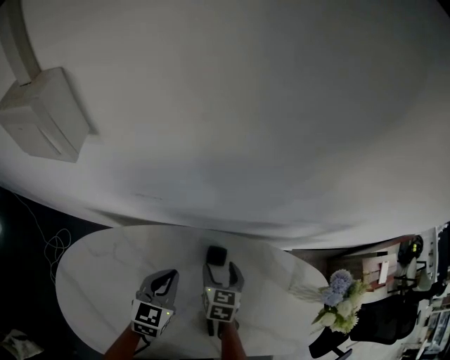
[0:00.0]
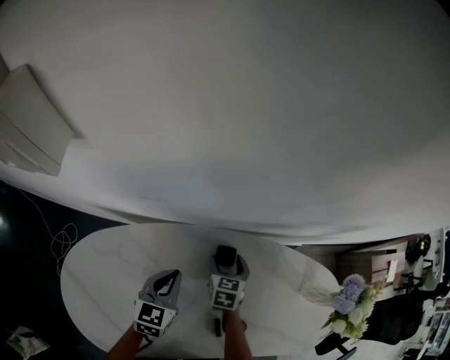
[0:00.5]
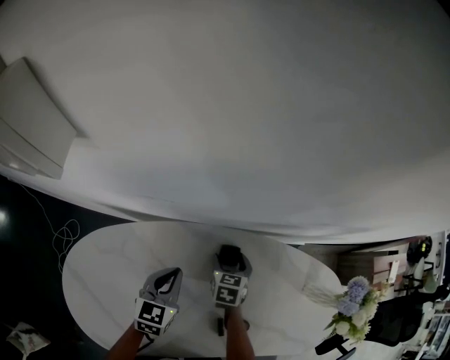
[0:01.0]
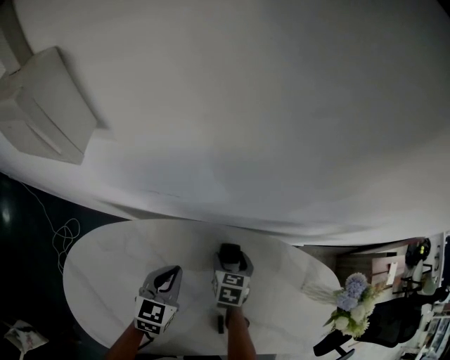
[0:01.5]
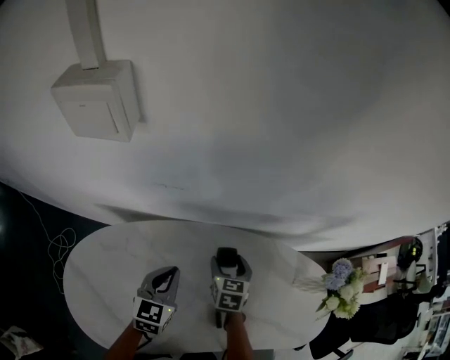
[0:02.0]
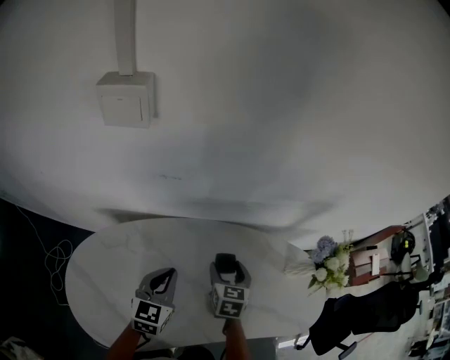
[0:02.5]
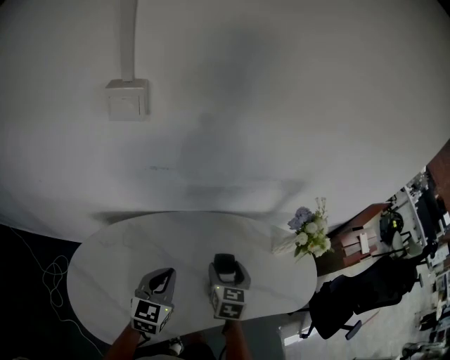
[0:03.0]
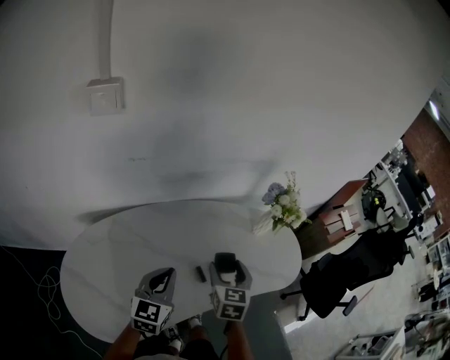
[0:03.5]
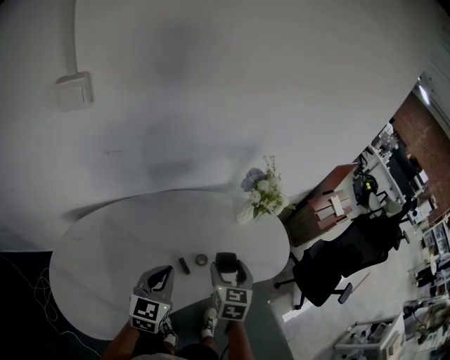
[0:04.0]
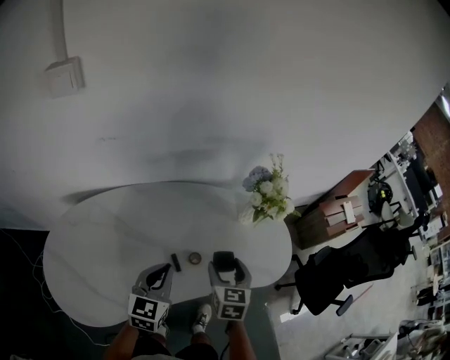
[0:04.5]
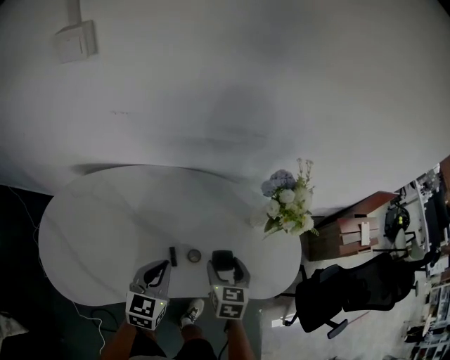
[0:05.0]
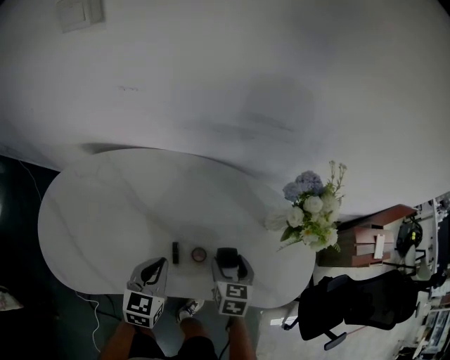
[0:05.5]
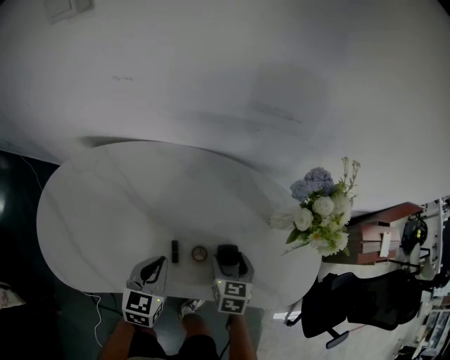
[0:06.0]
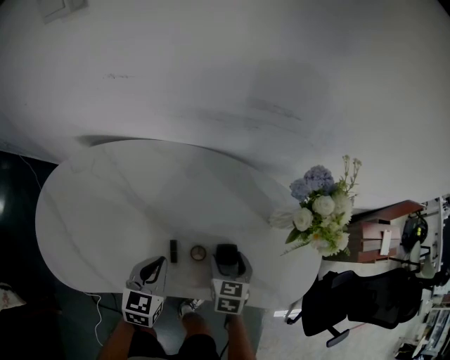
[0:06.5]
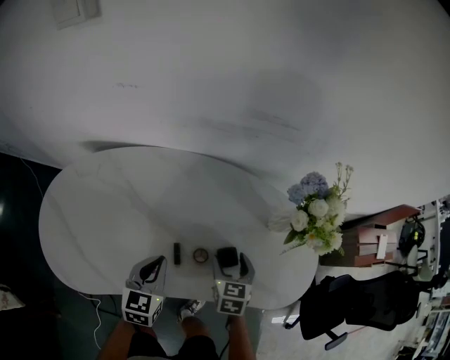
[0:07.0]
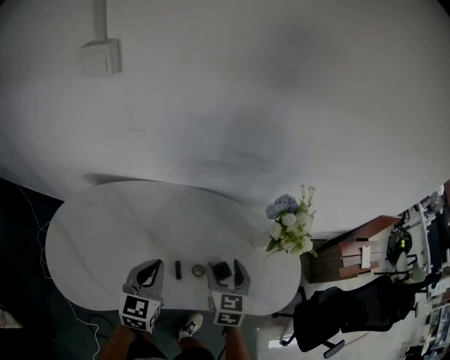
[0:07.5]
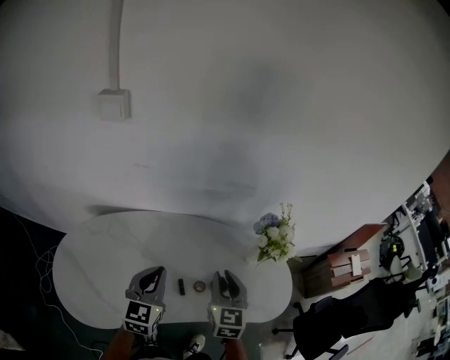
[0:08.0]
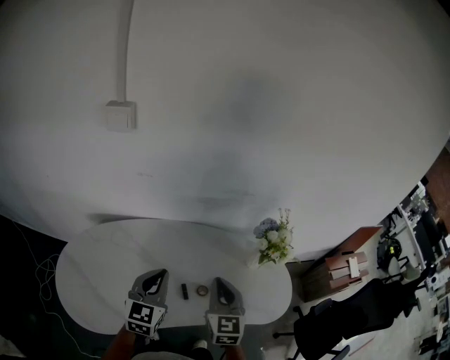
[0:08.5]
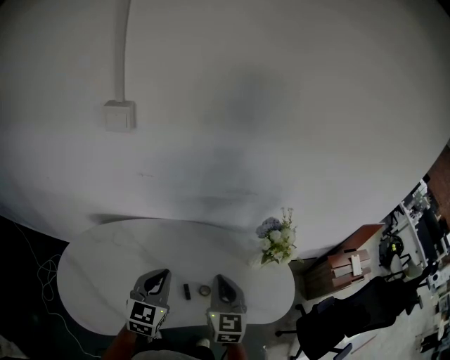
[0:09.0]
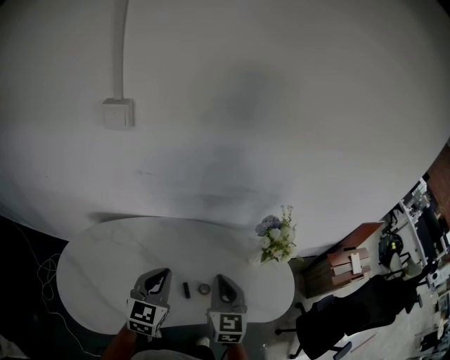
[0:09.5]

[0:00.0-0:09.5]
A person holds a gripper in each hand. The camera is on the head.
0:00.0 to 0:02.0: The left gripper moves some 5 cm, while the right gripper reaches approximately 5 cm downward, then returns.
0:02.0 to 0:04.0: The left gripper heads to the right, backward and upward, covering approximately 25 cm, and changes its angle by roughly 20 degrees; the right gripper travels backward, to the right and upward by approximately 35 cm, and swivels roughly 30 degrees.
0:04.0 to 0:05.5: The two grippers go roughly 15 cm downward. The left gripper rotates roughly 30 degrees; the right gripper swivels approximately 30 degrees.
0:05.5 to 0:07.5: The two grippers go about 10 cm upward.
0:07.5 to 0:09.5: Both grippers travel together upward, about 10 cm. The right gripper closes.

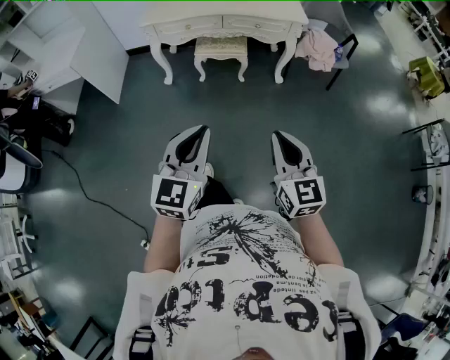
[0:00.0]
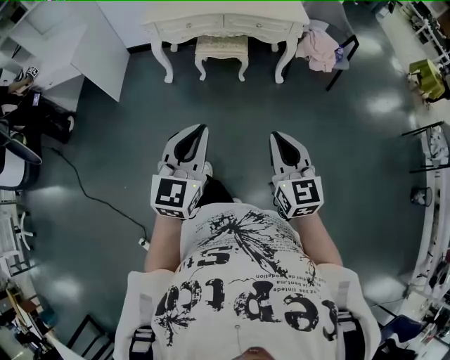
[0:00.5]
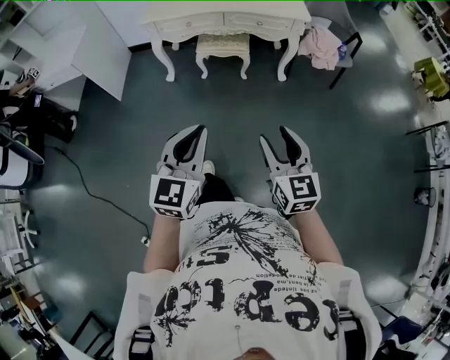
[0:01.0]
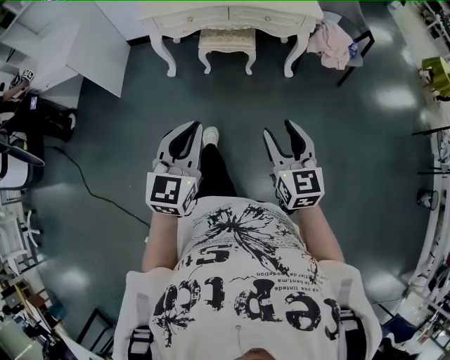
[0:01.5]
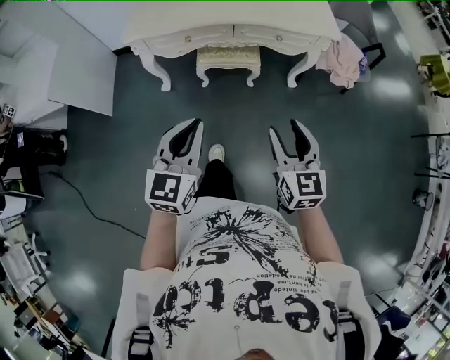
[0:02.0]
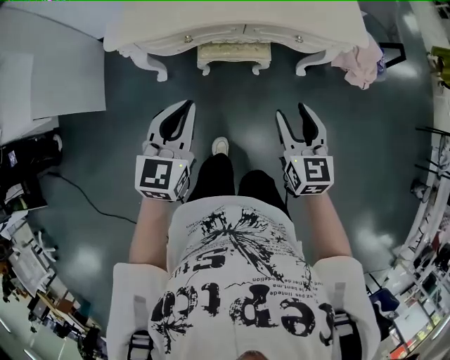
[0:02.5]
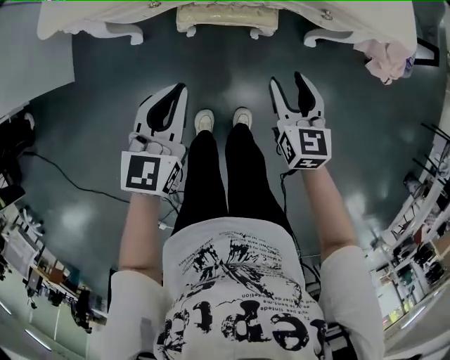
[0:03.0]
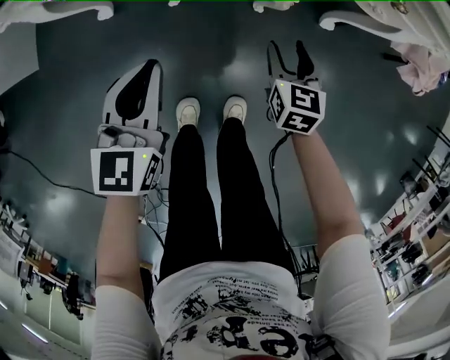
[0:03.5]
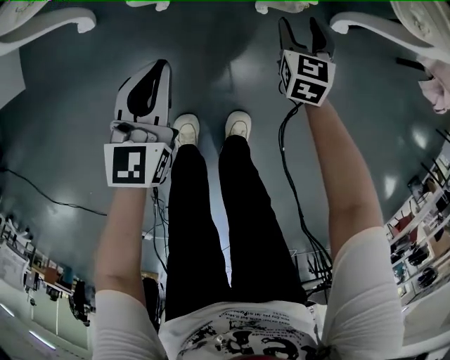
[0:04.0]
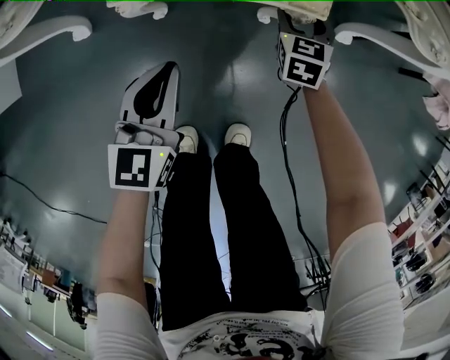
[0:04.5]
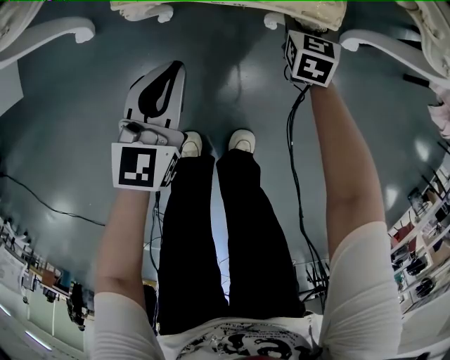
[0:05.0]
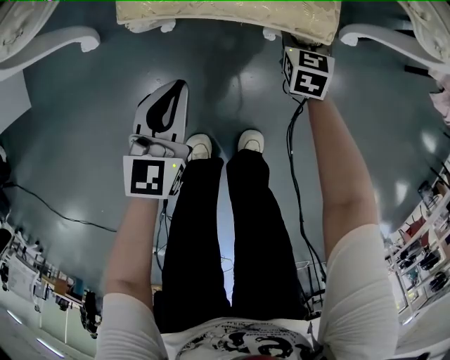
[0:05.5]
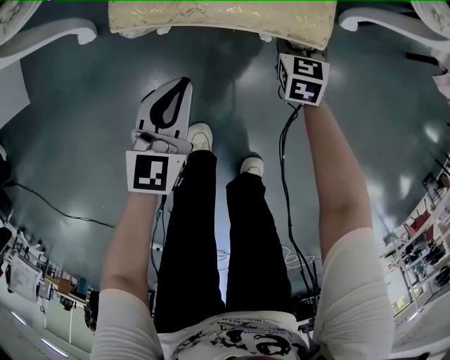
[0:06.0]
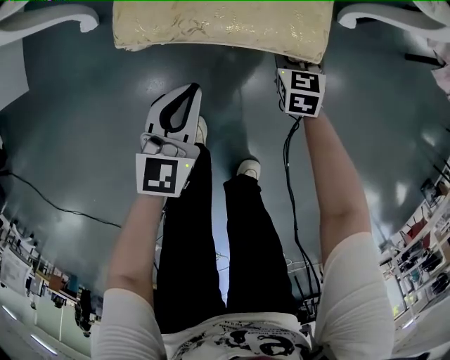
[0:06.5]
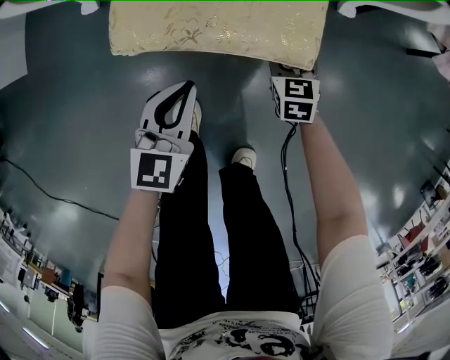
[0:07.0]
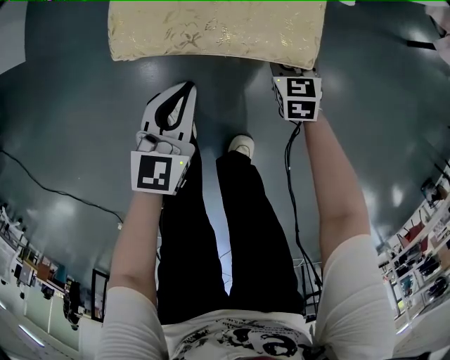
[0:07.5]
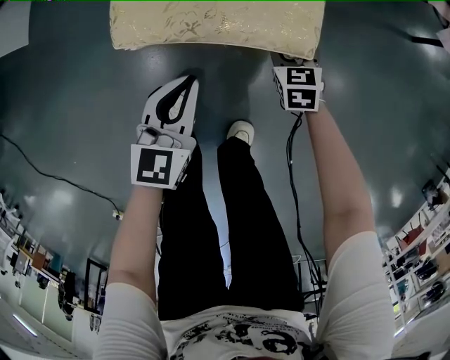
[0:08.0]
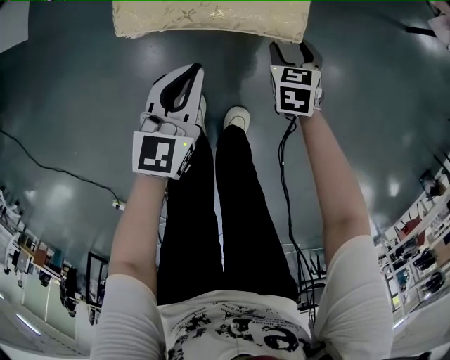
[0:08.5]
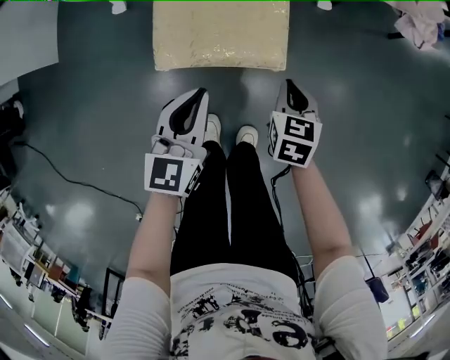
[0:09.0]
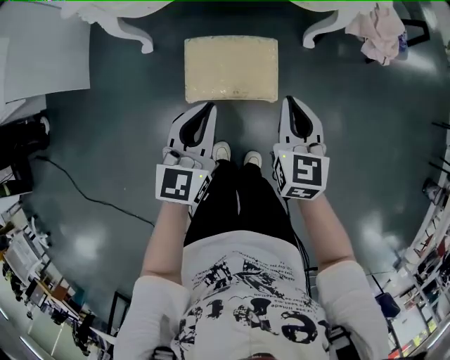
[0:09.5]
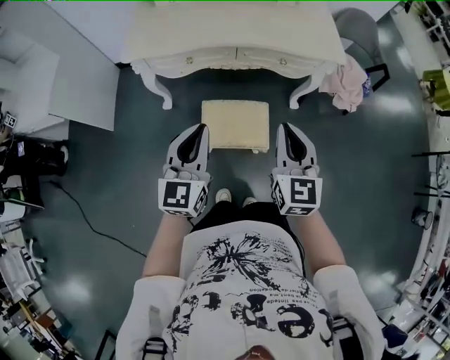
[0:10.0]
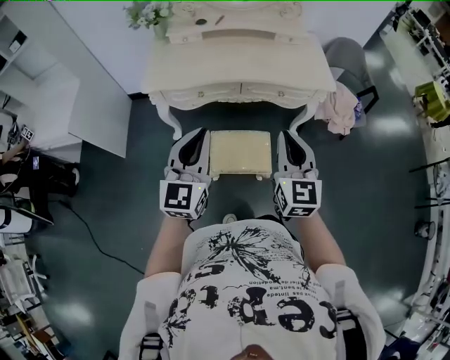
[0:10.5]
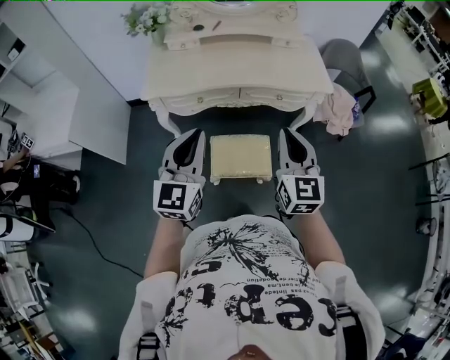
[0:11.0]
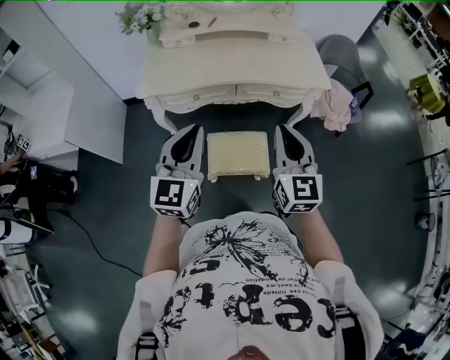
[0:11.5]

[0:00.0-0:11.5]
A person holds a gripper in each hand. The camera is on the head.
0:00.0 to 0:02.0: Both grippers move forward, about 30 cm. The right gripper opens.
0:02.0 to 0:04.0: The grippers both shift downward and forward by some 70 cm. The right gripper swivels roughly 20 degrees.
0:04.0 to 0:06.0: The left gripper moves some 5 cm, while the right gripper goes roughly 5 cm downward, and travels forward and back again, some 10 cm each way.
0:06.0 to 0:07.5: The left gripper is displaced backward and to the right by roughly 20 cm. The right gripper goes about 25 cm backward.
0:07.5 to 0:09.5: Both grippers move upward, some 40 cm. The right gripper swivels approximately 20 degrees, and closes its fingers.
0:09.5 to 0:11.5: The two grippers go some 30 cm upward. The right gripper turns by some 20 degrees.

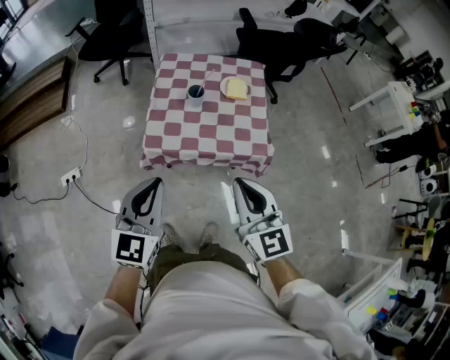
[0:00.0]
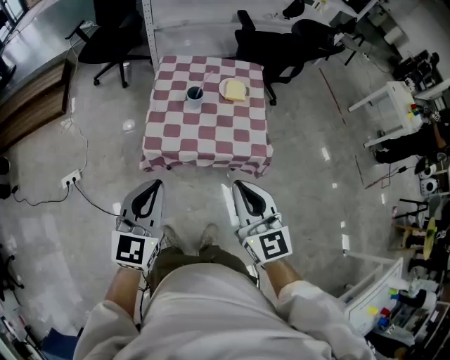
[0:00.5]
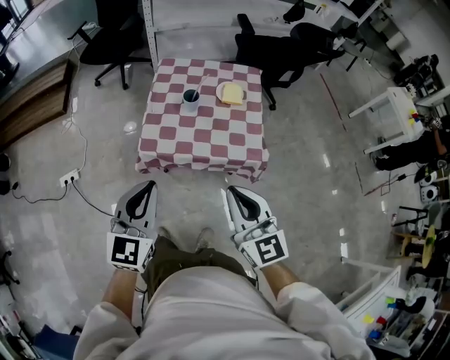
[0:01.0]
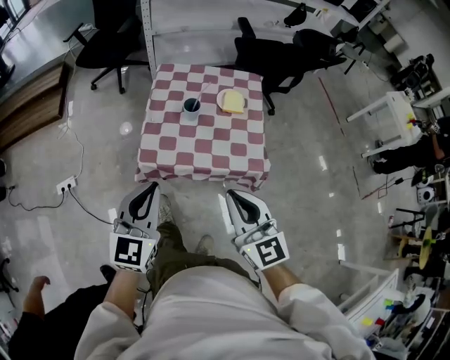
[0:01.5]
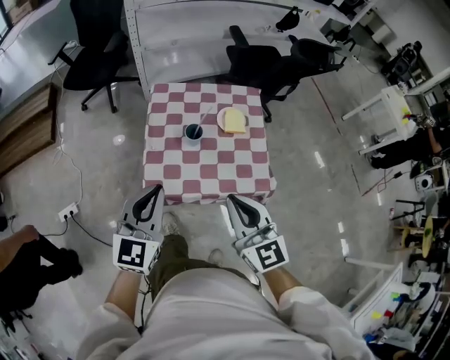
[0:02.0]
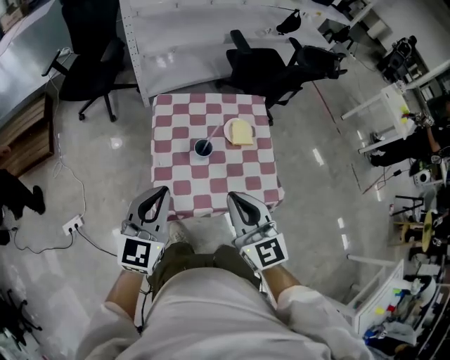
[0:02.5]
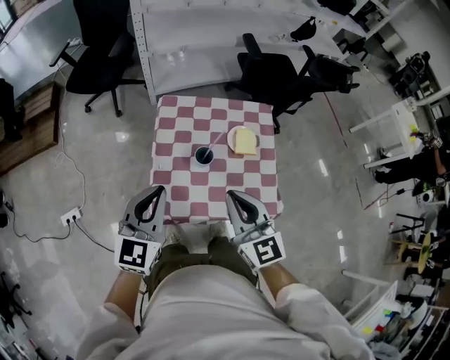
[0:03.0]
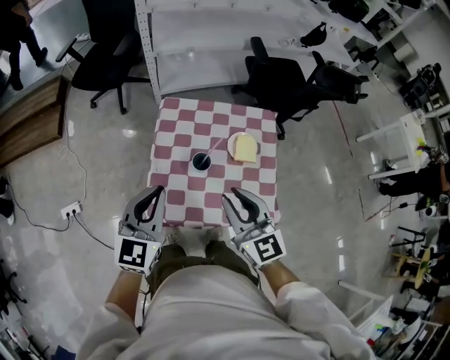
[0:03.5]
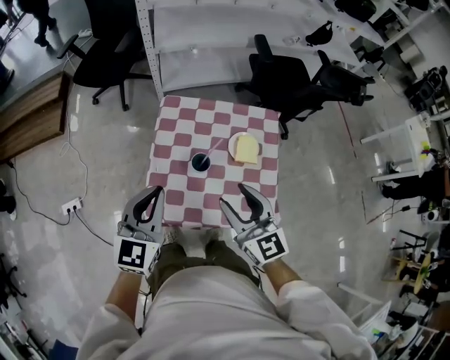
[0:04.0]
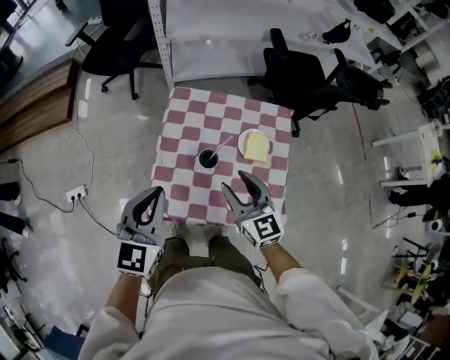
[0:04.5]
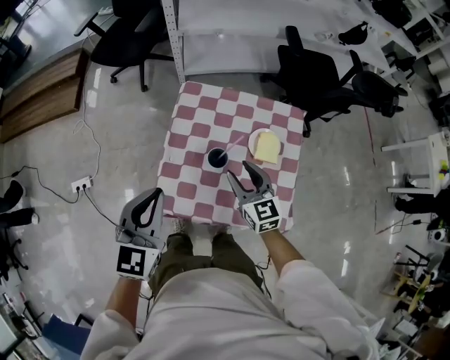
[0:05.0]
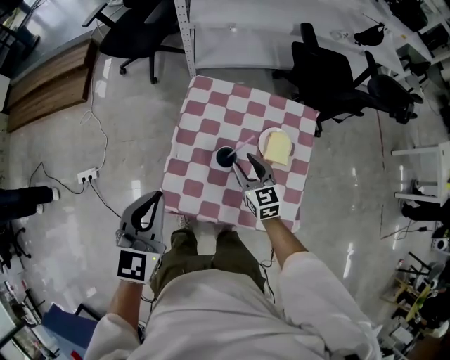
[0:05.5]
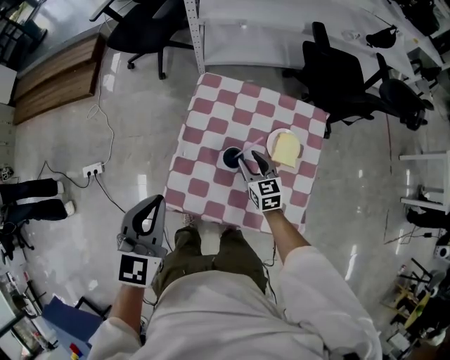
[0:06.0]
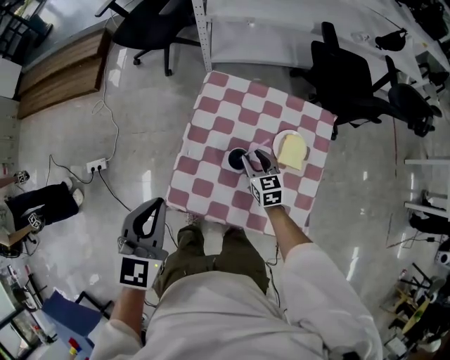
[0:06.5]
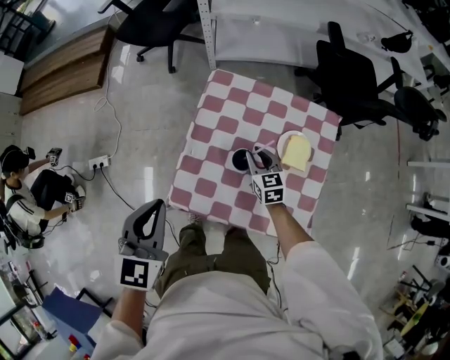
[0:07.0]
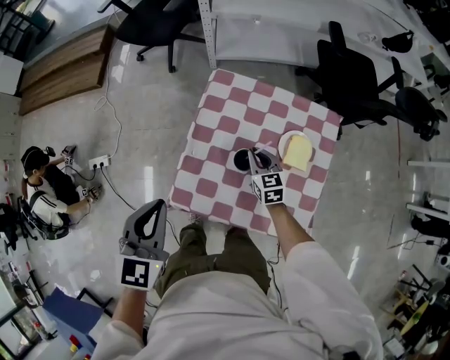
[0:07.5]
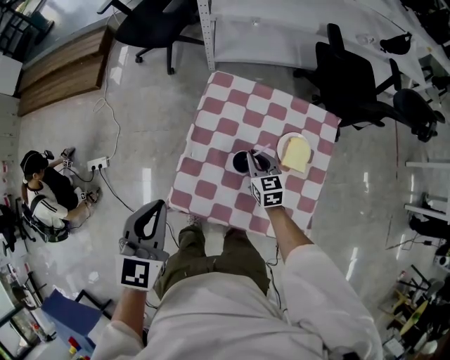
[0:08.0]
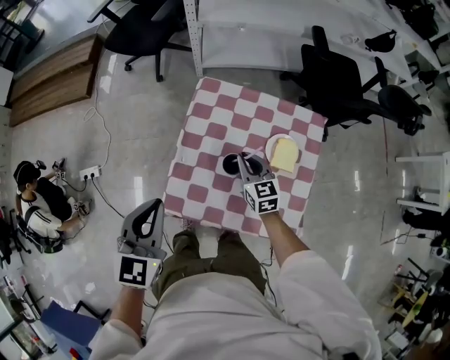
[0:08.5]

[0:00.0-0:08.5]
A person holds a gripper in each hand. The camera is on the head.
0:00.0 to 0:02.0: The grippers both shift forward by roughly 15 cm.
0:02.0 to 0:04.0: The two grippers go approximately 15 cm forward. The right gripper opens up.
0:04.0 to 0:06.5: The left gripper moves to the left, some 5 cm. The right gripper shifts approximately 30 cm downward and forward, and swivels some 20 degrees.
0:06.5 to 0:08.5: The right gripper travels upward by about 5 cm, and closes its fingers.
